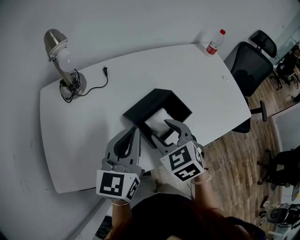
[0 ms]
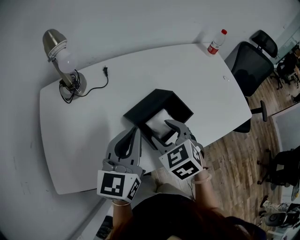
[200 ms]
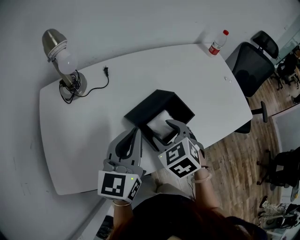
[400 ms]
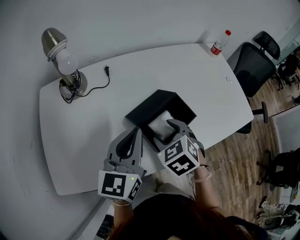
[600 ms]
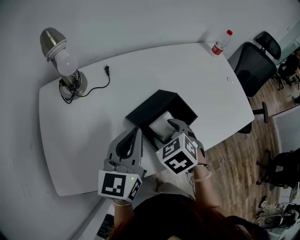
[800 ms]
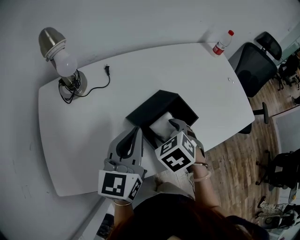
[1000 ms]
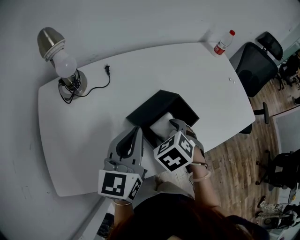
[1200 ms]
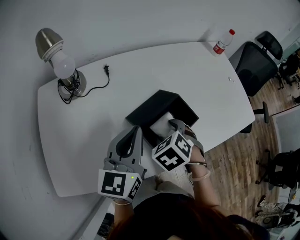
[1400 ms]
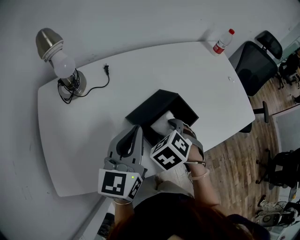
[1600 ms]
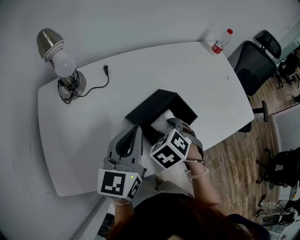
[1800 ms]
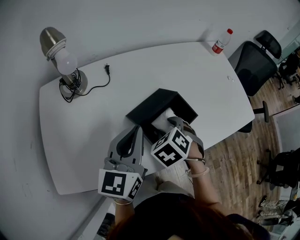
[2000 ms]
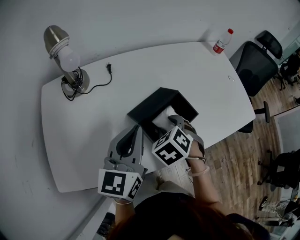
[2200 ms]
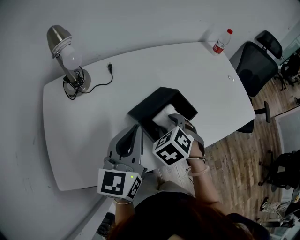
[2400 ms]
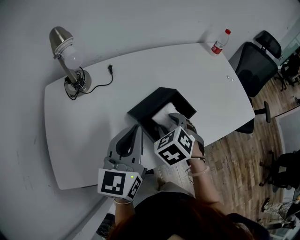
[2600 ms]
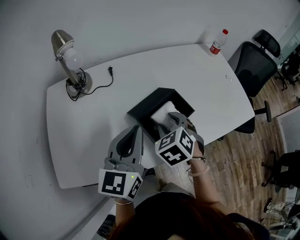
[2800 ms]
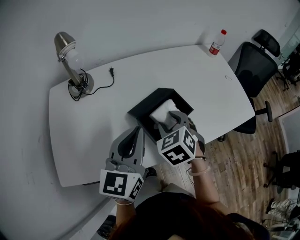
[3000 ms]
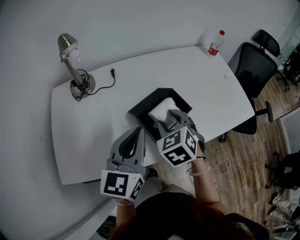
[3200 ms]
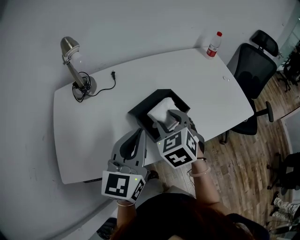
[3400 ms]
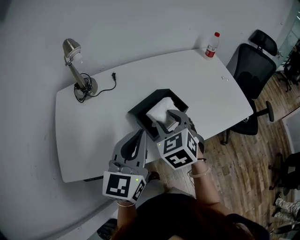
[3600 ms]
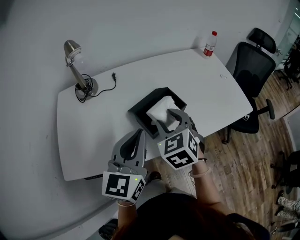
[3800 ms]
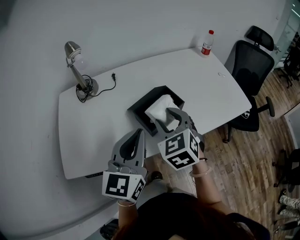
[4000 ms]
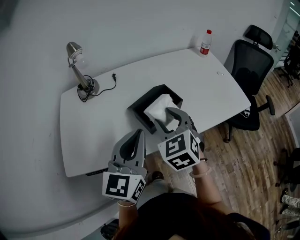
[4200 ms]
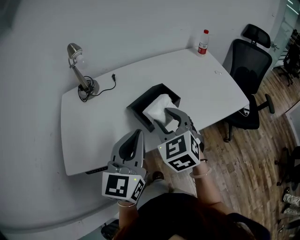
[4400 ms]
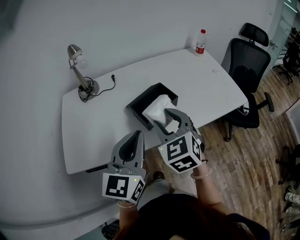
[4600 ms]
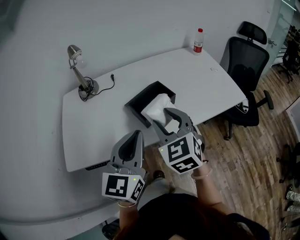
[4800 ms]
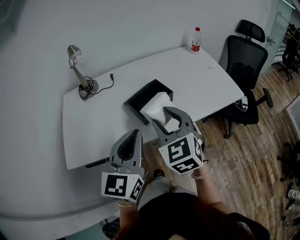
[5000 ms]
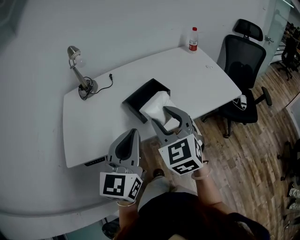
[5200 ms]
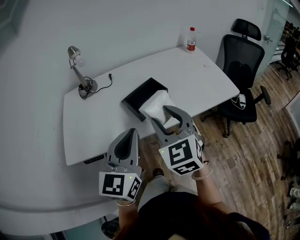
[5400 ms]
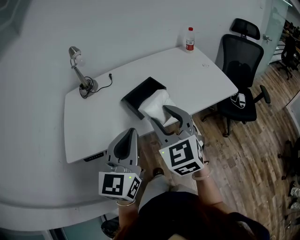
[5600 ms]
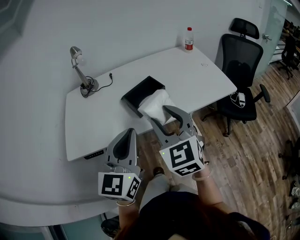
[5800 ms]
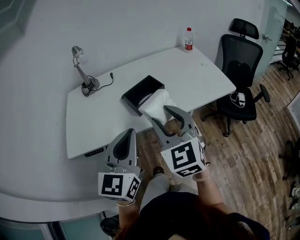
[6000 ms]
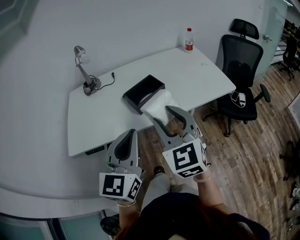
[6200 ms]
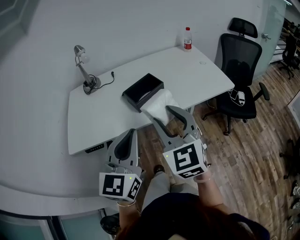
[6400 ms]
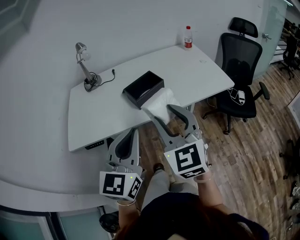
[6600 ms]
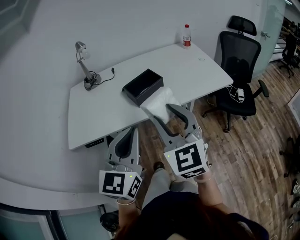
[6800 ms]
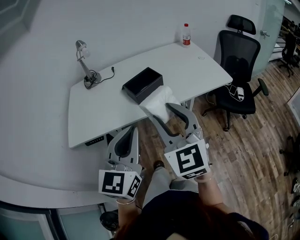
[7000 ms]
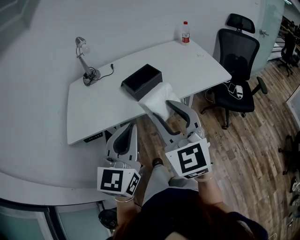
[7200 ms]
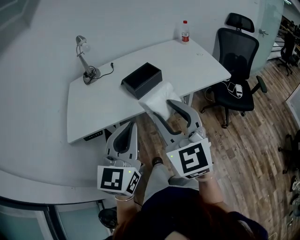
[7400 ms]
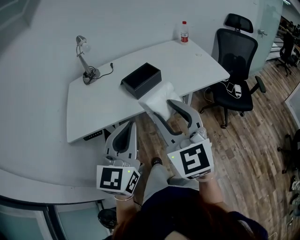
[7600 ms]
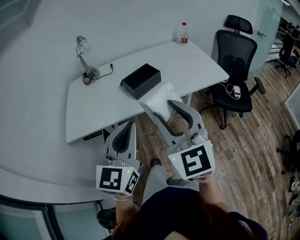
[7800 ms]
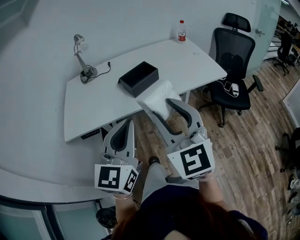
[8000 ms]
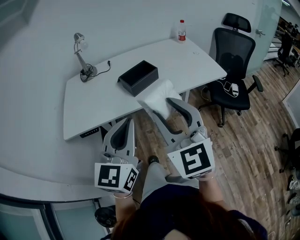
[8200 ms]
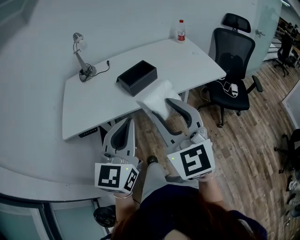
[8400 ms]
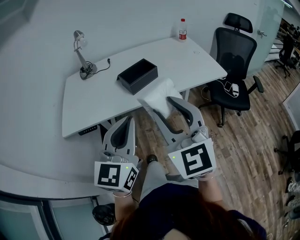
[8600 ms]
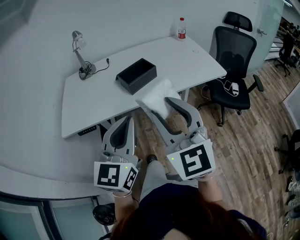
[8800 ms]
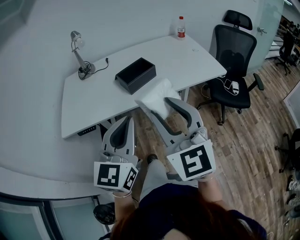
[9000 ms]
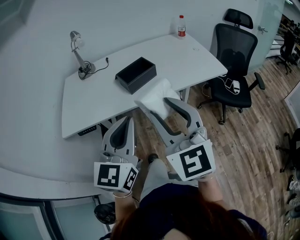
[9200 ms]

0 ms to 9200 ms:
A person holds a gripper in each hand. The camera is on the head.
0 ms to 1600 ms: The right gripper travels downward by some 5 cm, and rotates some 30 degrees.
1600 ms to 3000 ms: The left gripper moves backward, about 5 cm; the right gripper is displaced upward by some 5 cm.
3000 ms to 4600 ms: The left gripper travels backward and to the right by about 15 cm; the right gripper shifts some 15 cm backward and upward, and changes its angle by approximately 20 degrees.
4600 ms to 6200 ms: The right gripper shifts approximately 15 cm backward, upward and to the right. Meanwhile the left gripper shifts some 10 cm backward.
6200 ms to 7600 ms: The two grippers go about 10 cm backward.
7600 ms to 9200 ms: There are only small adjustments of the grippers.

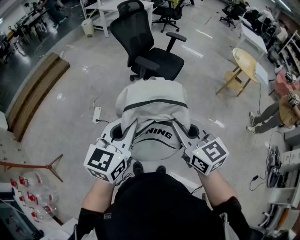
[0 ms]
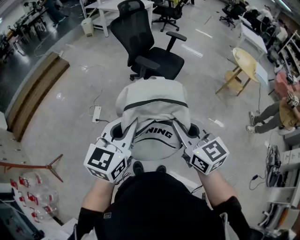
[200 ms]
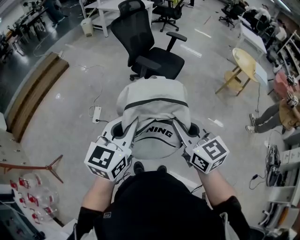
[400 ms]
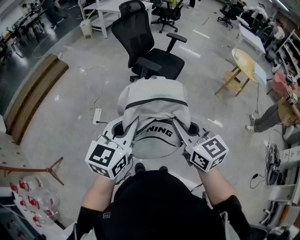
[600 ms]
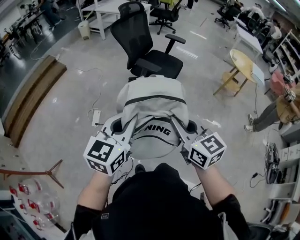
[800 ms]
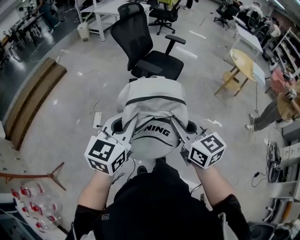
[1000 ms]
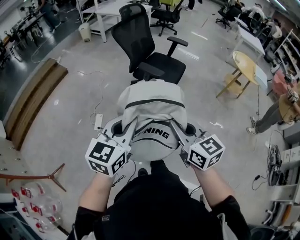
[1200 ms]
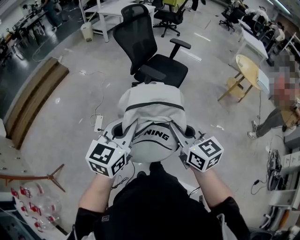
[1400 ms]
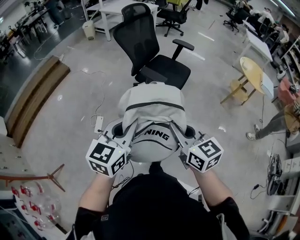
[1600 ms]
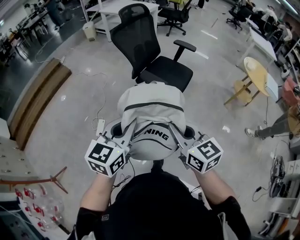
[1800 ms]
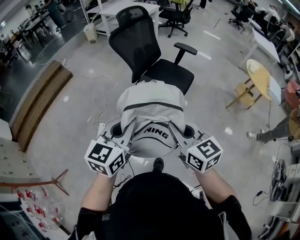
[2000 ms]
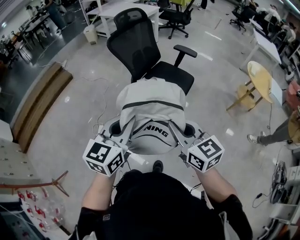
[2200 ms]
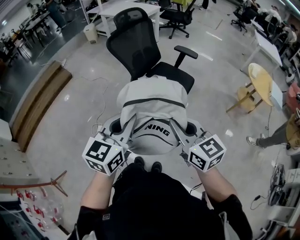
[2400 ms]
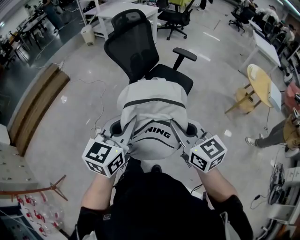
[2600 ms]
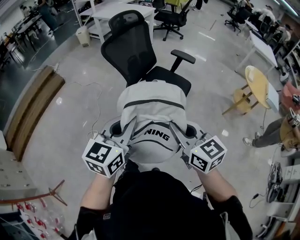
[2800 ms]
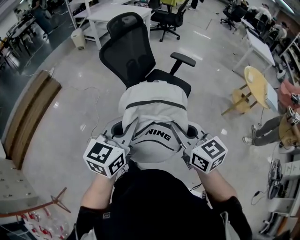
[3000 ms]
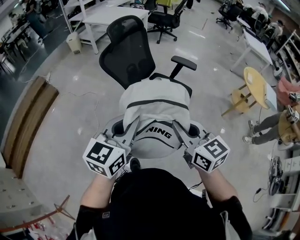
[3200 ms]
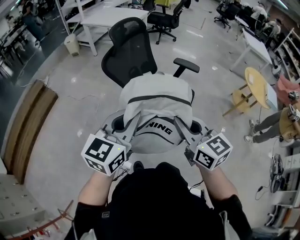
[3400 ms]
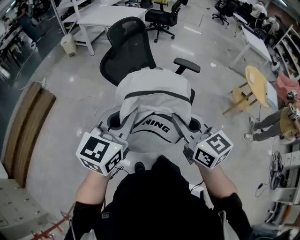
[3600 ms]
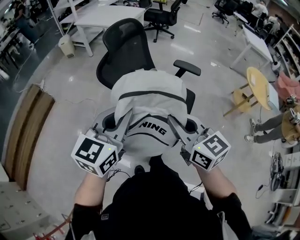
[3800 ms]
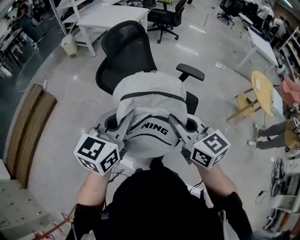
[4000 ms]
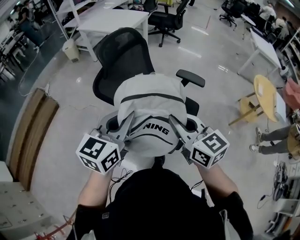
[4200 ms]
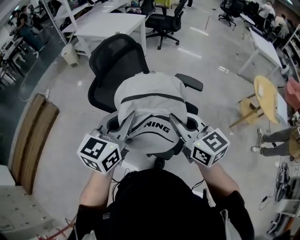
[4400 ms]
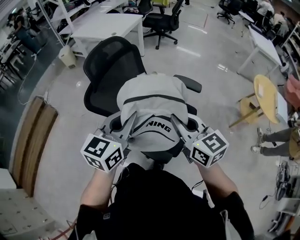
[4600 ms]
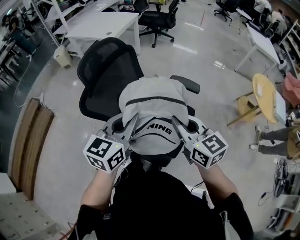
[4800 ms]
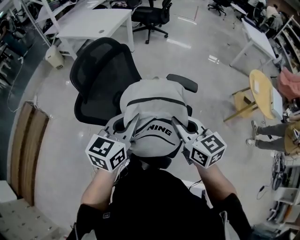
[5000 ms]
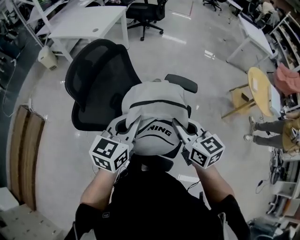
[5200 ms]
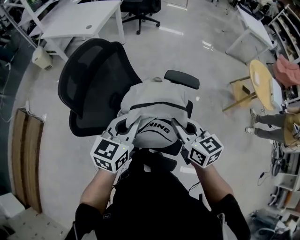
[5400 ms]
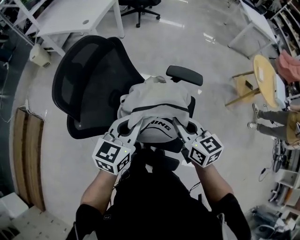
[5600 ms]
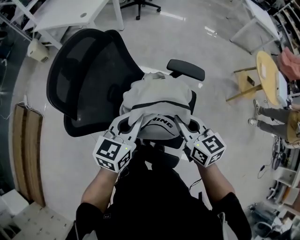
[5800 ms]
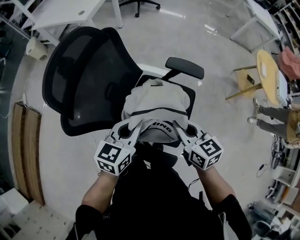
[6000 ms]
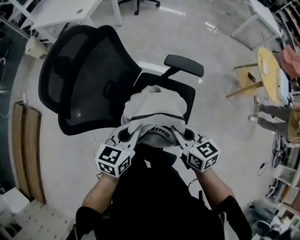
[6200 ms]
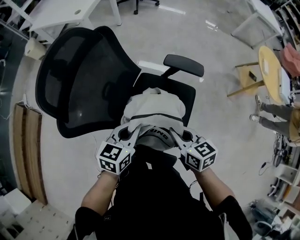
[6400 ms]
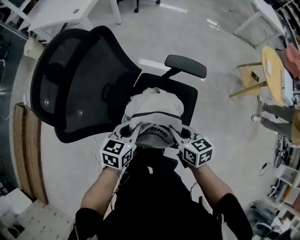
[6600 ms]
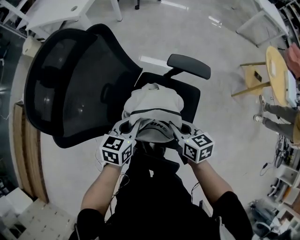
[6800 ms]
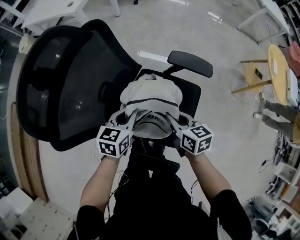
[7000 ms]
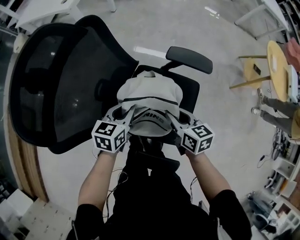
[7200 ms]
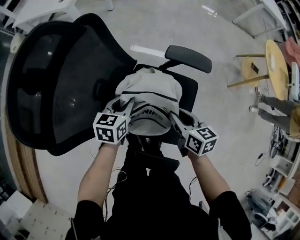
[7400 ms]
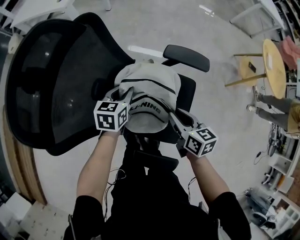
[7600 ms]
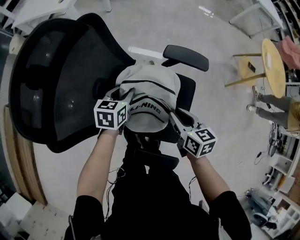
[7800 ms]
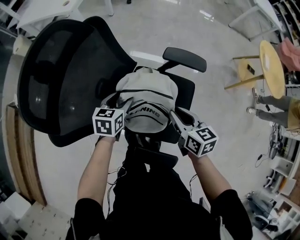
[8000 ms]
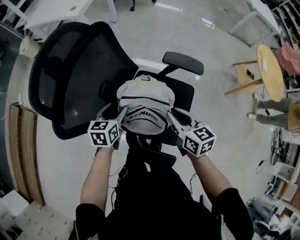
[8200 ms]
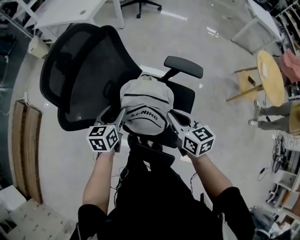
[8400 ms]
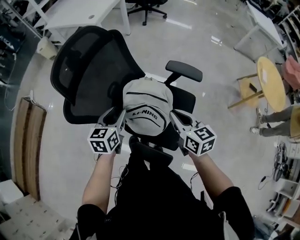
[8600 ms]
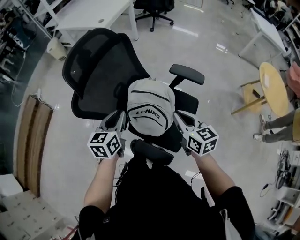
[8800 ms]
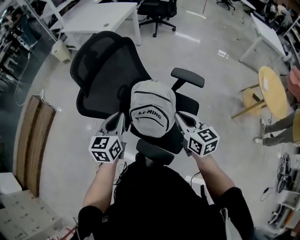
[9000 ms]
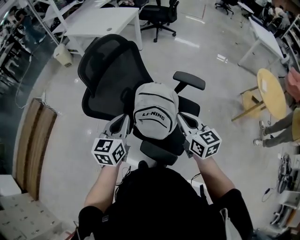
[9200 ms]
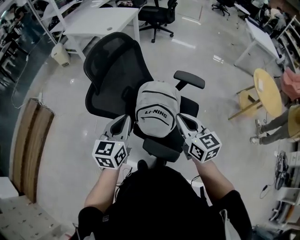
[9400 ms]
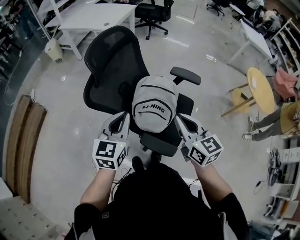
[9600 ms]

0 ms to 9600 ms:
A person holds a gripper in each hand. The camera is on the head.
0 ms to 1600 ms: Both grippers travel together forward, approximately 15 cm.
1600 ms to 3200 ms: The two grippers go roughly 35 cm forward.
3200 ms to 4800 ms: Both grippers move forward, some 35 cm.
4800 ms to 6400 ms: Both grippers move downward and forward, approximately 25 cm. The left gripper rotates roughly 20 degrees. The right gripper rotates approximately 30 degrees.
6400 ms to 8000 ms: The left gripper is displaced forward and downward by about 20 cm, and opens its fingers; the right gripper travels forward and downward by roughly 10 cm.
8000 ms to 9600 ms: The left gripper shifts about 40 cm upward and backward, rotates approximately 30 degrees, and closes. Meanwhile the right gripper heads upward, backward and to the left, covering approximately 30 cm, and swivels about 30 degrees.

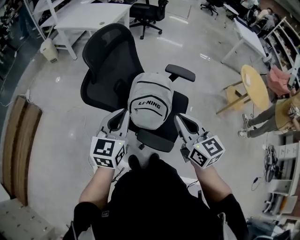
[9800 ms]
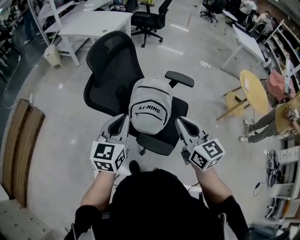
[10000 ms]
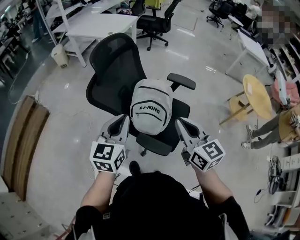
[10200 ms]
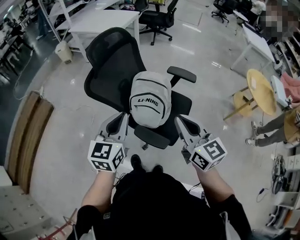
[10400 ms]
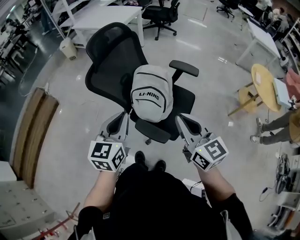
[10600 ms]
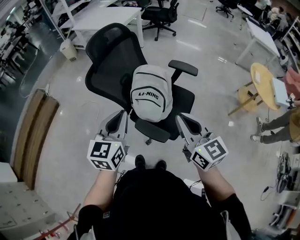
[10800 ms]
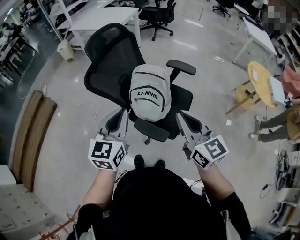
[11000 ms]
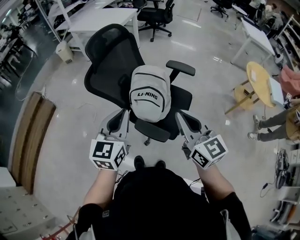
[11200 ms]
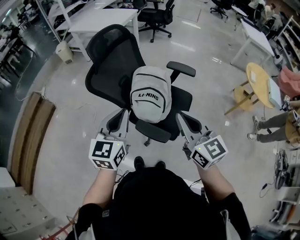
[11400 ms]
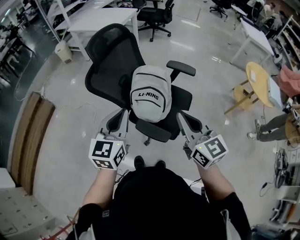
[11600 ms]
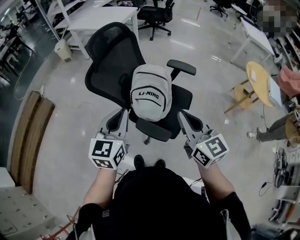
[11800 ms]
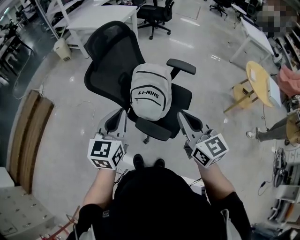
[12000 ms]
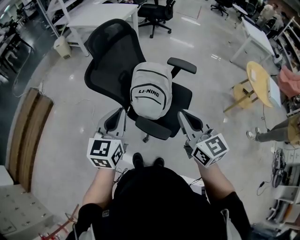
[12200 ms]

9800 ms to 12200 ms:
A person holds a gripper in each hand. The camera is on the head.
9800 ms to 11000 ms: Both grippers move backward and to the right, some 15 cm.
11000 ms to 12200 ms: The grippers make only small movements.

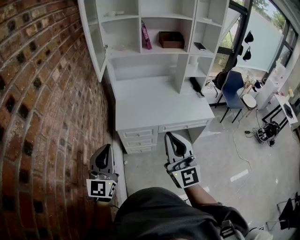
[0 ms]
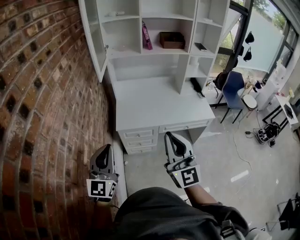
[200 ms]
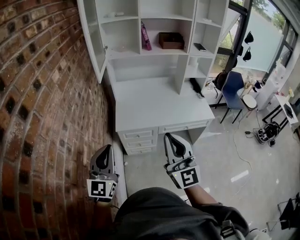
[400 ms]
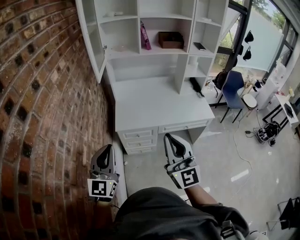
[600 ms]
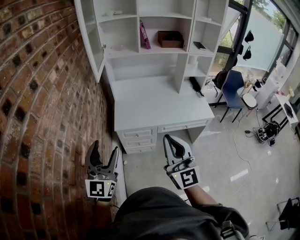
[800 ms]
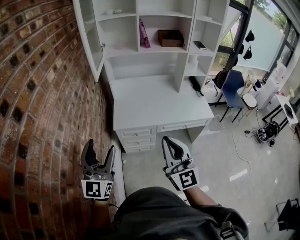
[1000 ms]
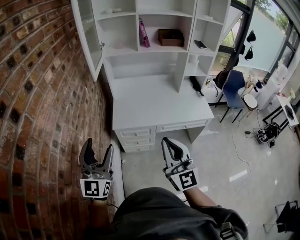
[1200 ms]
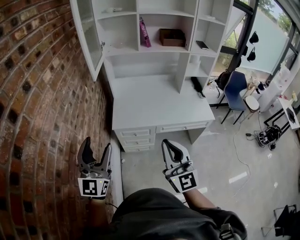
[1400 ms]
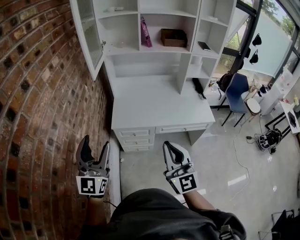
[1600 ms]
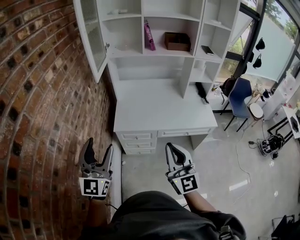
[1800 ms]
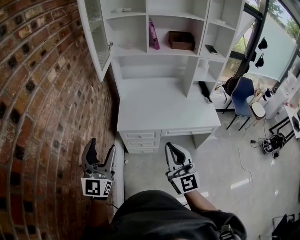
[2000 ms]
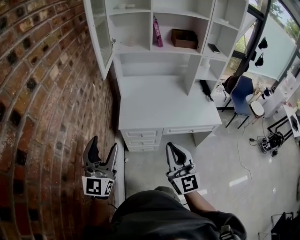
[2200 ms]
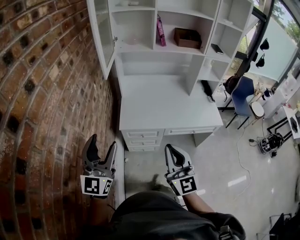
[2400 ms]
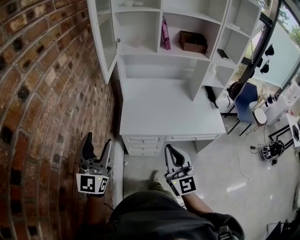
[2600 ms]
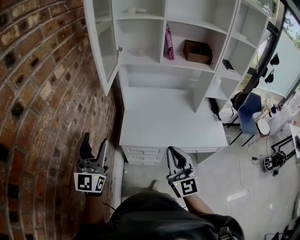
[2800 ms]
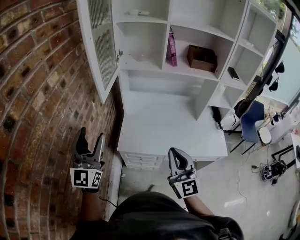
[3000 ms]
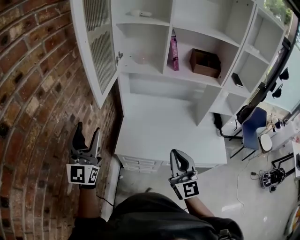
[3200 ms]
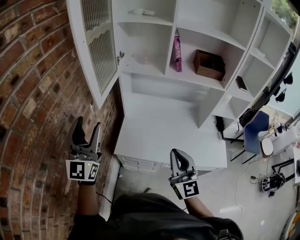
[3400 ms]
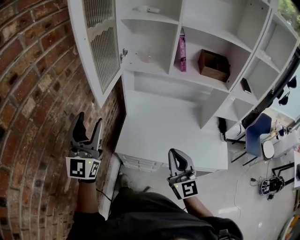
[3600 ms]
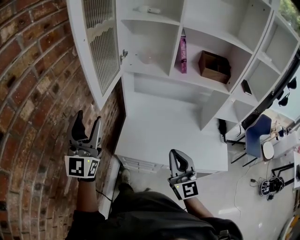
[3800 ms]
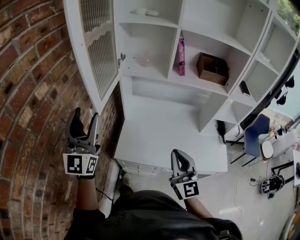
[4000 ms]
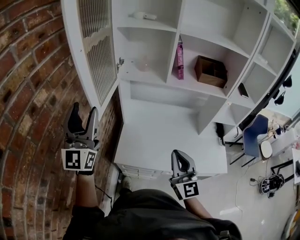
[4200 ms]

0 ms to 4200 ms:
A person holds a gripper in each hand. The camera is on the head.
0 ms to 1400 ms: The right gripper shifts by roughly 5 cm, while the left gripper opens up.
1400 ms to 2800 ms: Both grippers travel together forward, some 15 cm.
2800 ms to 4200 ms: The left gripper moves forward and upward, approximately 25 cm; the right gripper goes about 20 cm forward and to the right.
